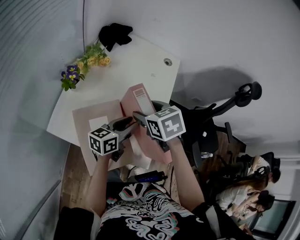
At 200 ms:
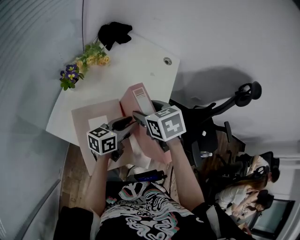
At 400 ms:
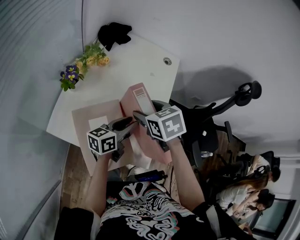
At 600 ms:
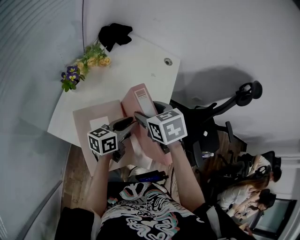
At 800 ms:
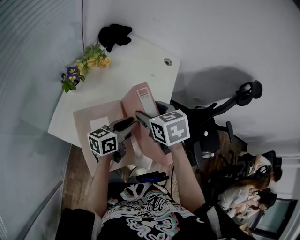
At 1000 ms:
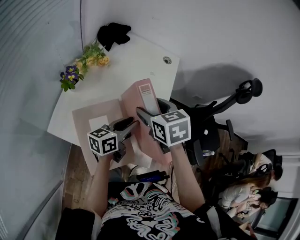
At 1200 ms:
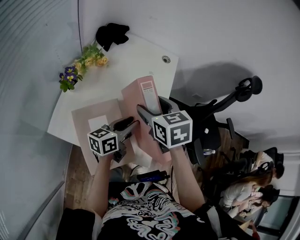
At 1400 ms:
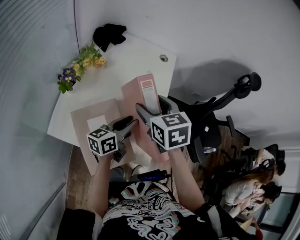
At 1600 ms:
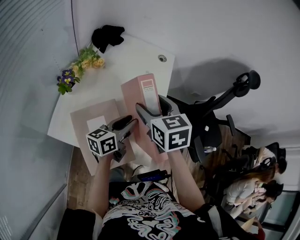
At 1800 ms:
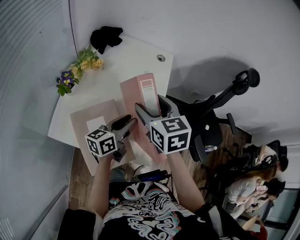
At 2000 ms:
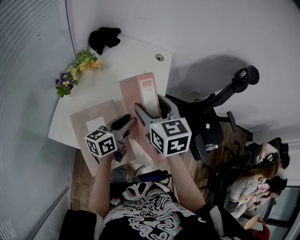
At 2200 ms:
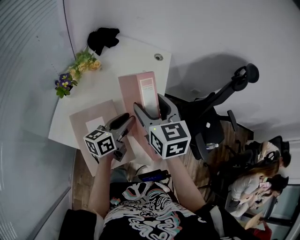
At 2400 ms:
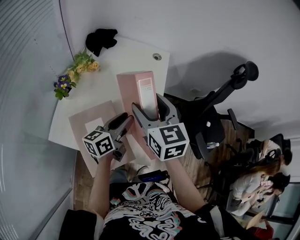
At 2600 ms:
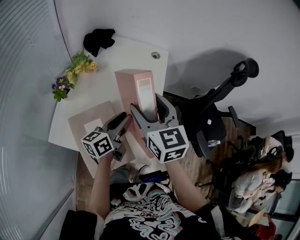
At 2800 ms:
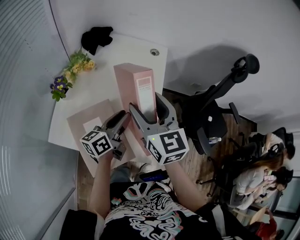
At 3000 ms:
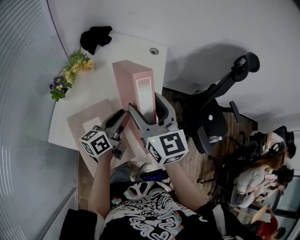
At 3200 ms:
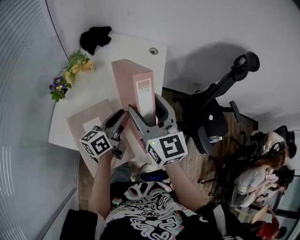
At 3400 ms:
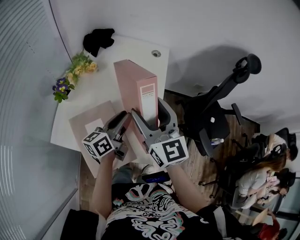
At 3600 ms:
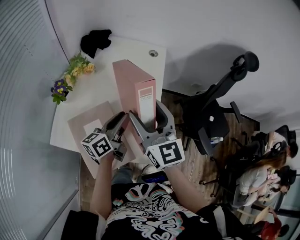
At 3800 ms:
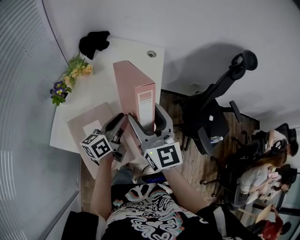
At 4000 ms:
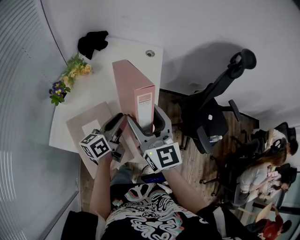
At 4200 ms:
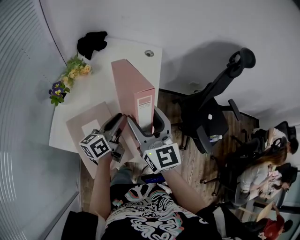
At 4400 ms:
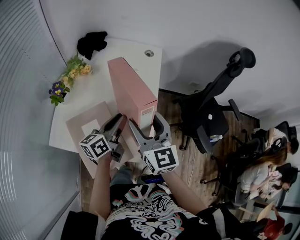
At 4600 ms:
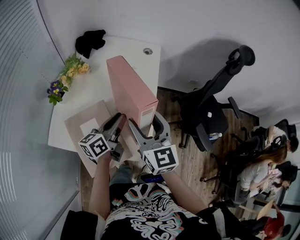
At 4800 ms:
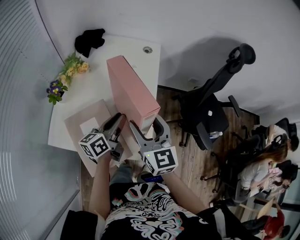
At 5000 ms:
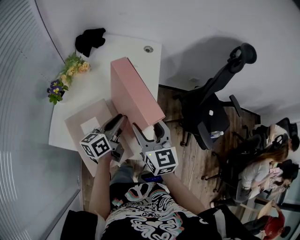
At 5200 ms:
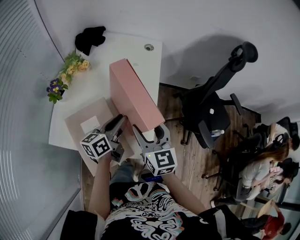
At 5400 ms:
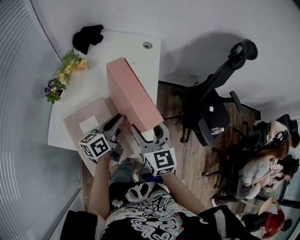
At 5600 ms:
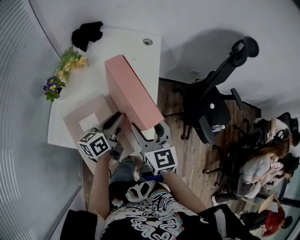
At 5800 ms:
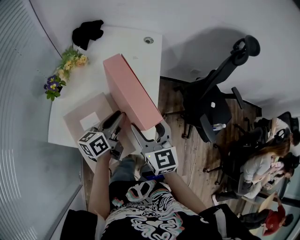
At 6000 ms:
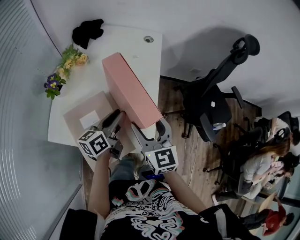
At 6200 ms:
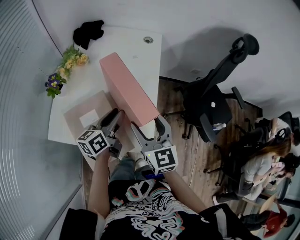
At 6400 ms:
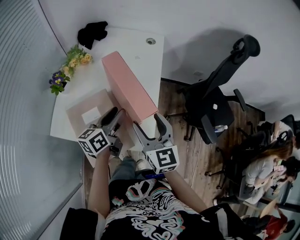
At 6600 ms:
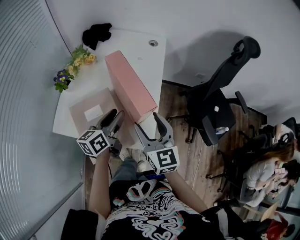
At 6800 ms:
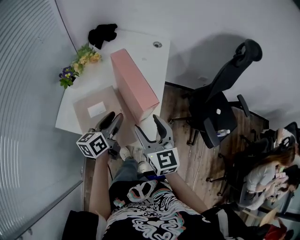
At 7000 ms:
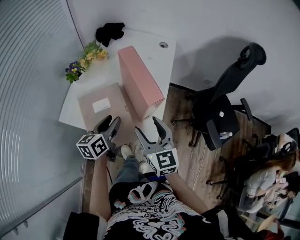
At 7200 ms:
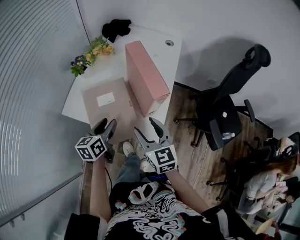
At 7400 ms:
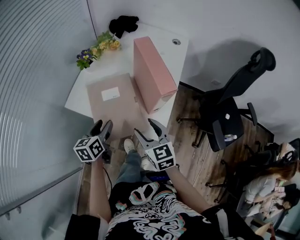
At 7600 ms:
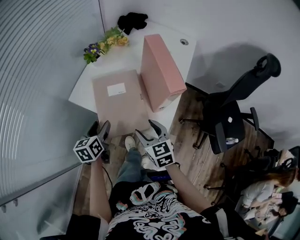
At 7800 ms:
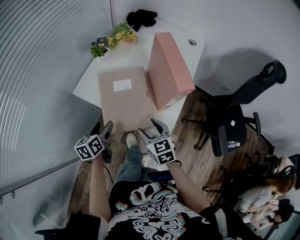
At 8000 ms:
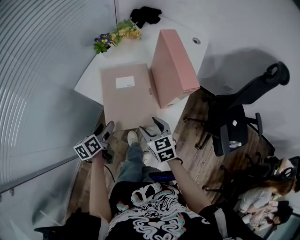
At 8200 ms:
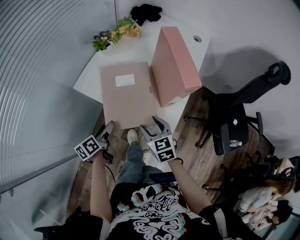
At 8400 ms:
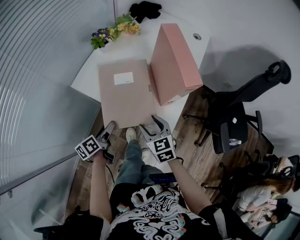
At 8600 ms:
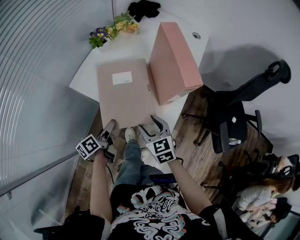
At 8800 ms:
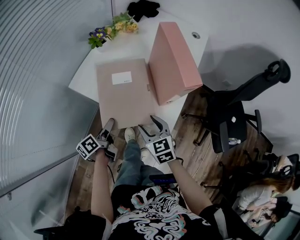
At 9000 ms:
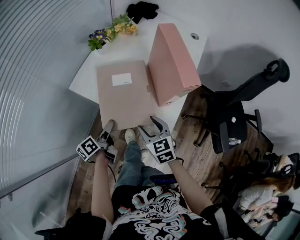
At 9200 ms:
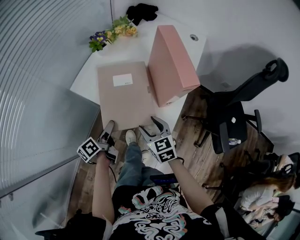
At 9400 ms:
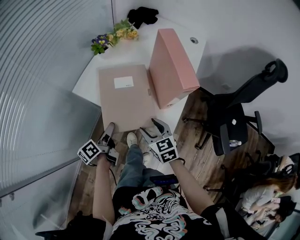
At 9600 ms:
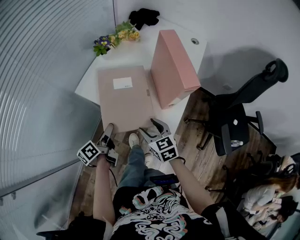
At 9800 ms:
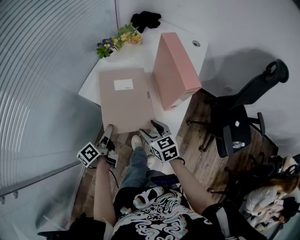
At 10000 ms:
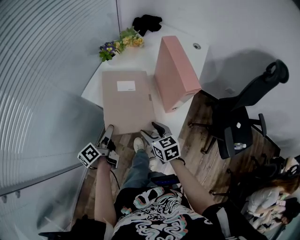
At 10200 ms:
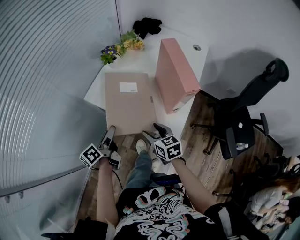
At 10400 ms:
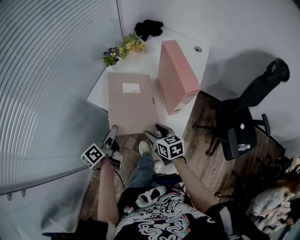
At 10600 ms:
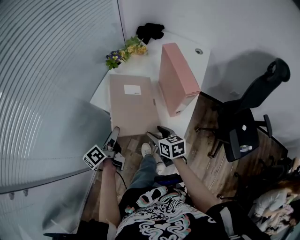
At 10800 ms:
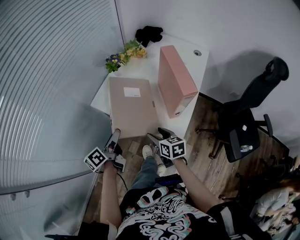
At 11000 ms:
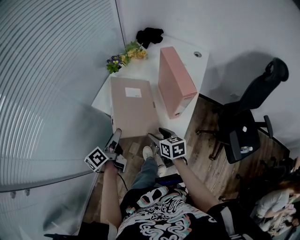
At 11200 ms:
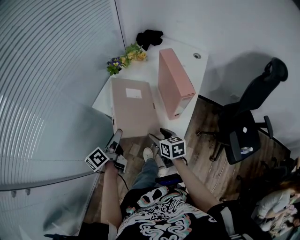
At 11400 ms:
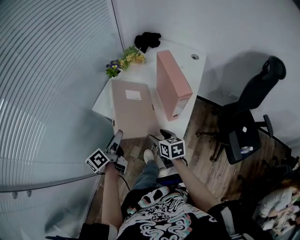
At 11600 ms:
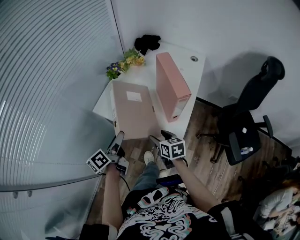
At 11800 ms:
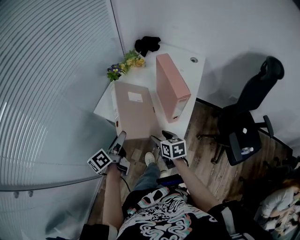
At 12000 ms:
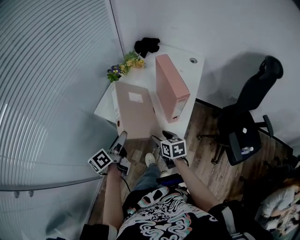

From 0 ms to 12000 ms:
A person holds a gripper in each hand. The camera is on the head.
From 0 ms to 1600 ms: The right gripper is displaced upward by some 5 cm, and changes its angle by about 20 degrees.
From 1600 ms to 3000 ms: The right gripper moves roughly 5 cm, and changes its angle by some 30 degrees.
From 3000 ms to 4400 ms: The right gripper moves some 5 cm.
From 4400 ms to 6000 ms: The right gripper is displaced downward by some 5 cm.
From 6000 ms to 7600 ms: The left gripper shifts by roughly 25 cm, changes its angle by approximately 40 degrees, and opens up, while the right gripper ends up about 20 cm from where it was, and rotates about 30 degrees.
From 7600 ms to 9000 ms: The right gripper shifts by approximately 5 cm; the left gripper goes approximately 5 cm downward, and twists some 40 degrees counterclockwise, seen from behind.
From 9000 ms to 10400 ms: The right gripper swivels some 20 degrees, while the left gripper goes some 10 cm upward.
From 10400 ms to 12000 ms: The left gripper moves upward, some 5 cm.

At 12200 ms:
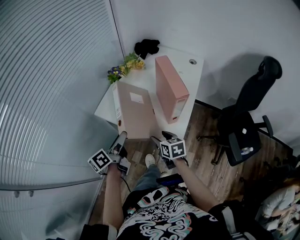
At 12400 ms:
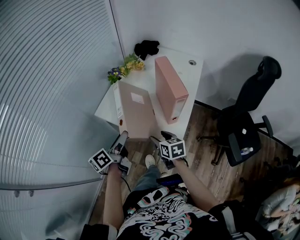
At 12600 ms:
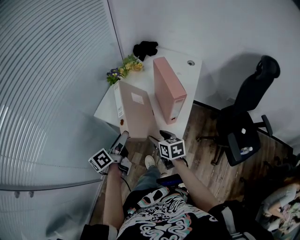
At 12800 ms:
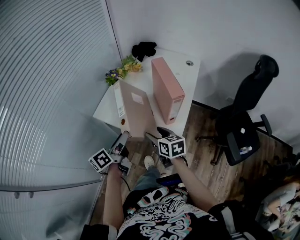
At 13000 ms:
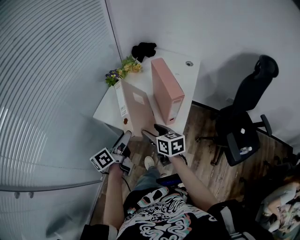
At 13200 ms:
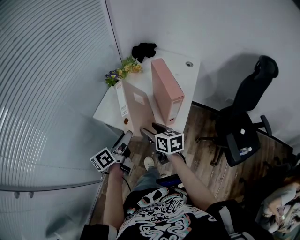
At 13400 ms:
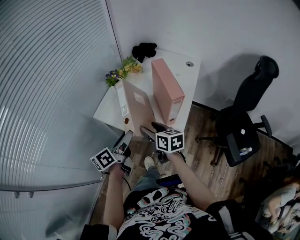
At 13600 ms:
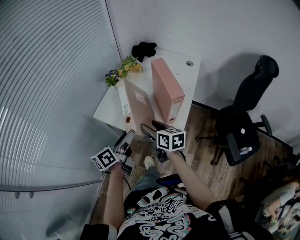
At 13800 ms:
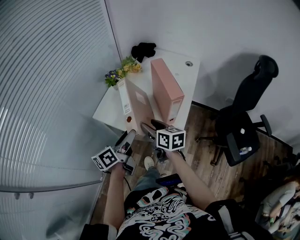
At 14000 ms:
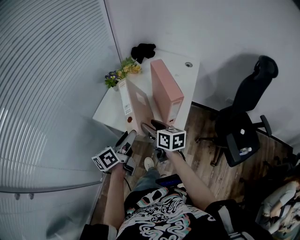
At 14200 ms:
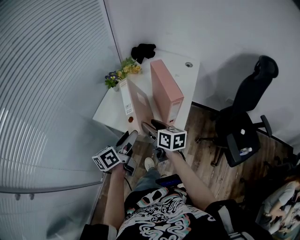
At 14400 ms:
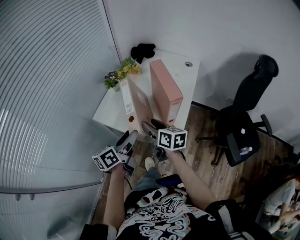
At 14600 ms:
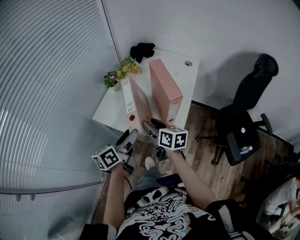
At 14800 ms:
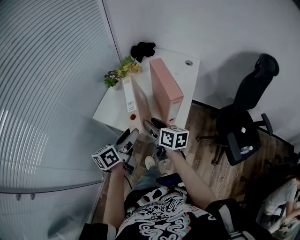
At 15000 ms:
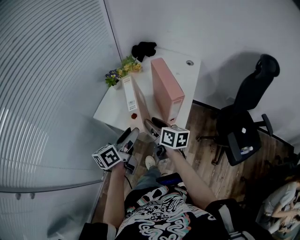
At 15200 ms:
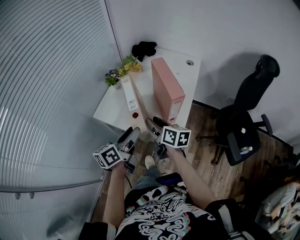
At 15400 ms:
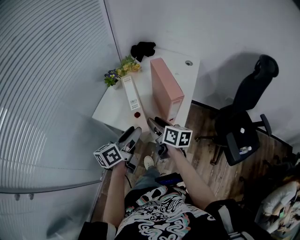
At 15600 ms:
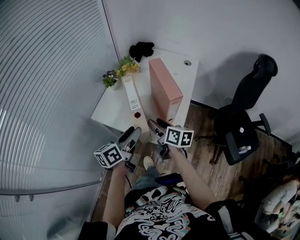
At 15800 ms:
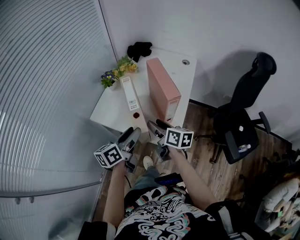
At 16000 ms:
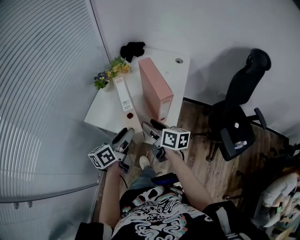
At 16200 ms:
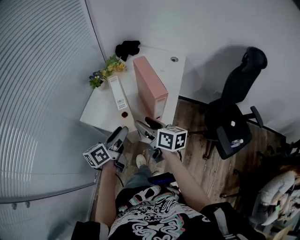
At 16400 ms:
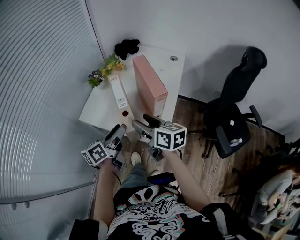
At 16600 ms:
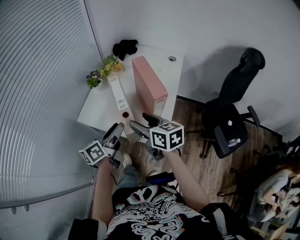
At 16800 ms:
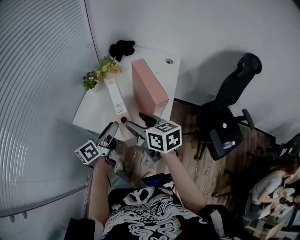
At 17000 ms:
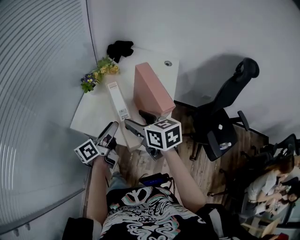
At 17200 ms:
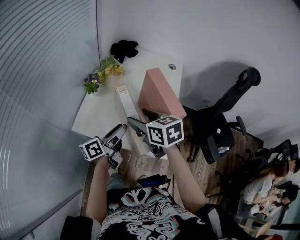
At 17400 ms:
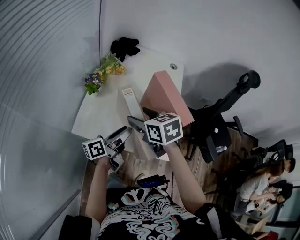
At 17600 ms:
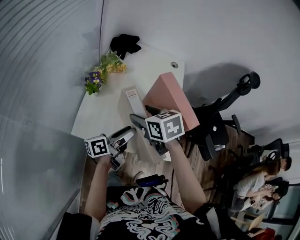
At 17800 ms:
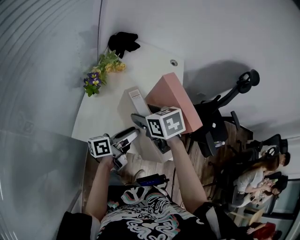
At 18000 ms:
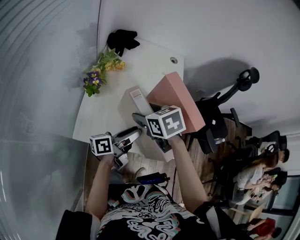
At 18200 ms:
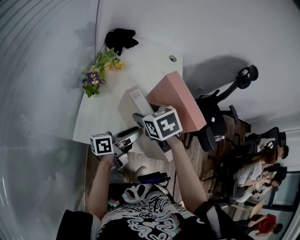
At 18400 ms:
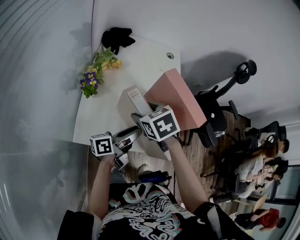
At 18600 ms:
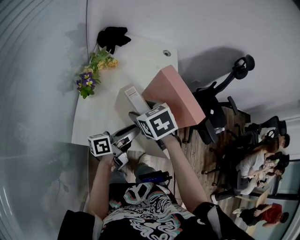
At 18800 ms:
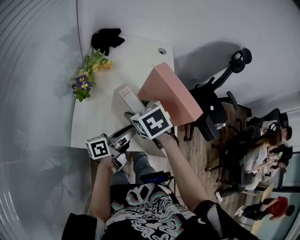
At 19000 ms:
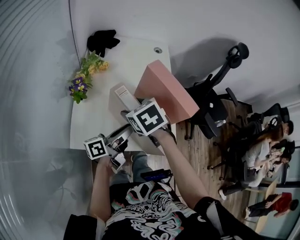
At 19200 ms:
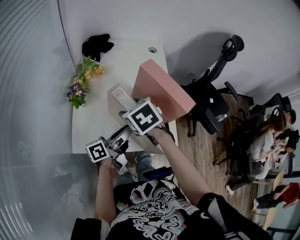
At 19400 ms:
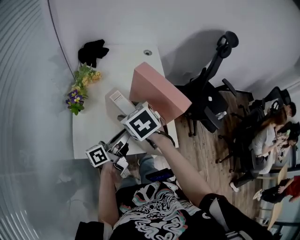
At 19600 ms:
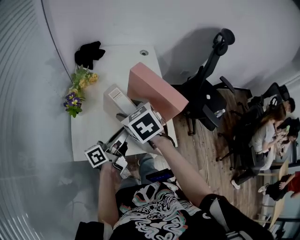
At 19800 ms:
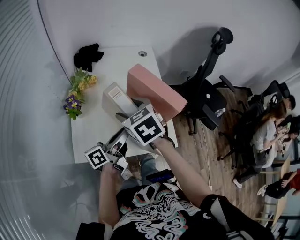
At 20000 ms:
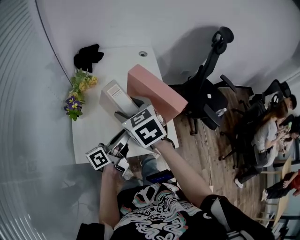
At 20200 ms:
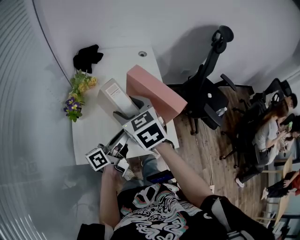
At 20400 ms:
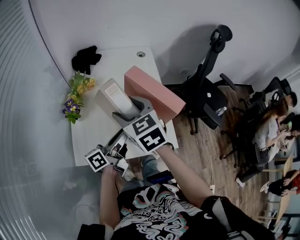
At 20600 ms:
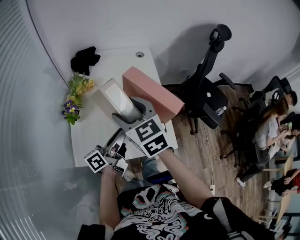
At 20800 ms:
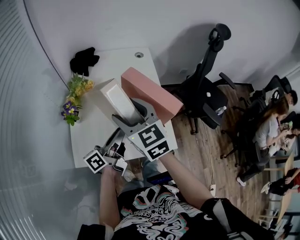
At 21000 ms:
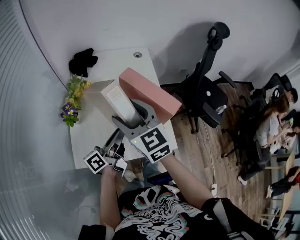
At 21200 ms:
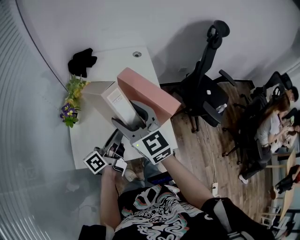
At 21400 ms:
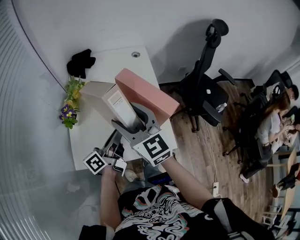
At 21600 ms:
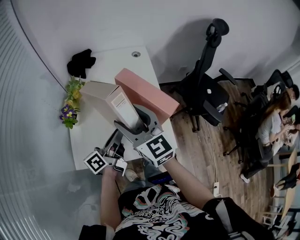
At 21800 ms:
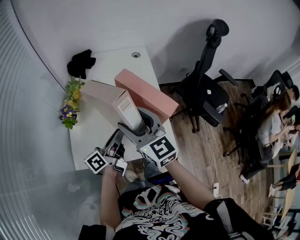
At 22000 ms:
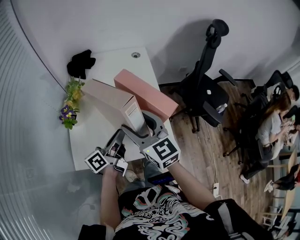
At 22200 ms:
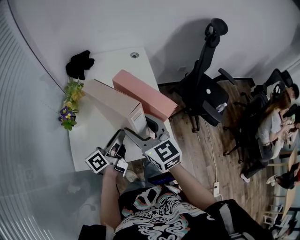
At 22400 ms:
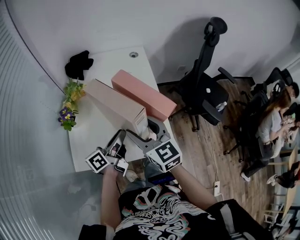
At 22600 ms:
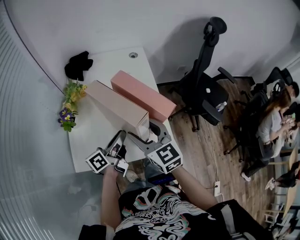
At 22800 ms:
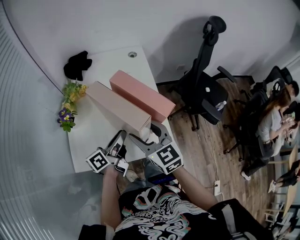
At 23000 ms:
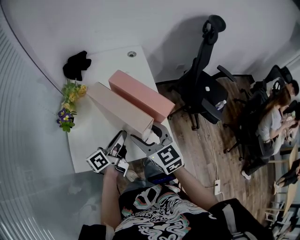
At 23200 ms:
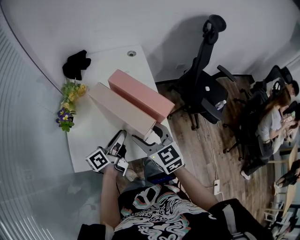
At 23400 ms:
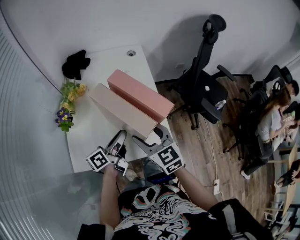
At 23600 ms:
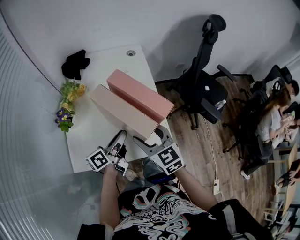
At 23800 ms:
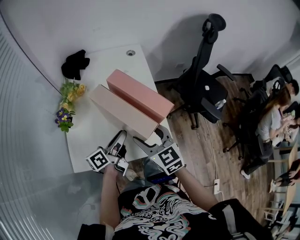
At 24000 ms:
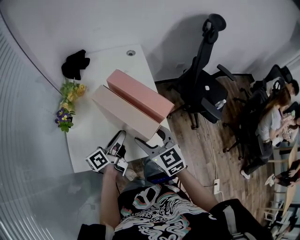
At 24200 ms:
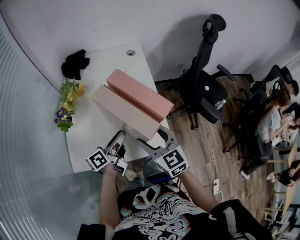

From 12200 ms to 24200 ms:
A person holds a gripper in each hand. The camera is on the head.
From 12200 ms to 13800 ms: The right gripper is displaced upward by roughly 10 cm; the left gripper is displaced to the right by approximately 5 cm.
From 13800 ms to 15200 ms: The grippers move only a little.
From 15200 ms to 16600 ms: The right gripper moves upward, some 5 cm.
From 16600 ms to 18200 ms: The right gripper moves roughly 20 cm, and points its fingers about 40 degrees further downward, while the left gripper ends up about 10 cm from where it was, and rotates some 40 degrees.
From 18200 ms to 19800 ms: The grippers stay close to where they were, moving slightly.
From 19800 ms to 21200 ms: The right gripper goes about 5 cm upward, and angles its fingers upward, by some 30 degrees.
From 21200 ms to 22600 ms: The right gripper is displaced to the right and downward by about 10 cm.
From 22600 ms to 24200 ms: The right gripper shifts by approximately 5 cm.
